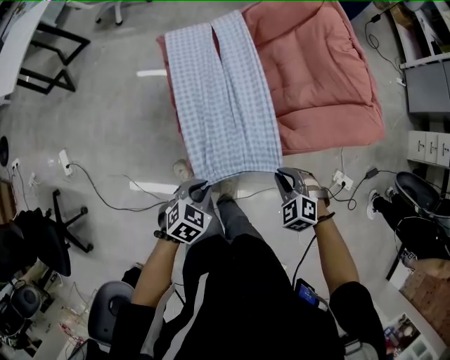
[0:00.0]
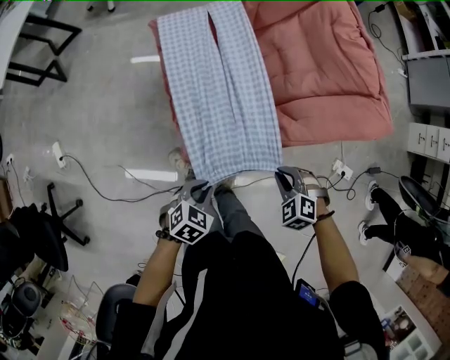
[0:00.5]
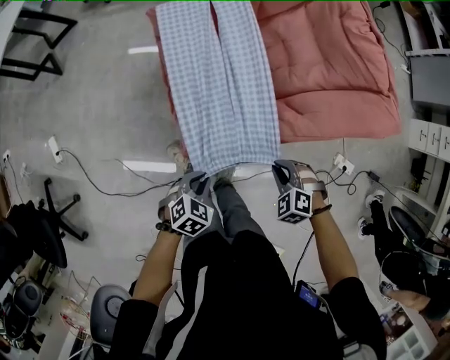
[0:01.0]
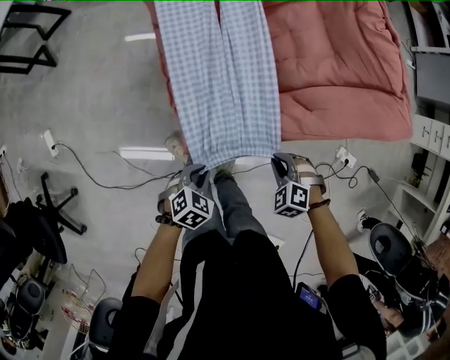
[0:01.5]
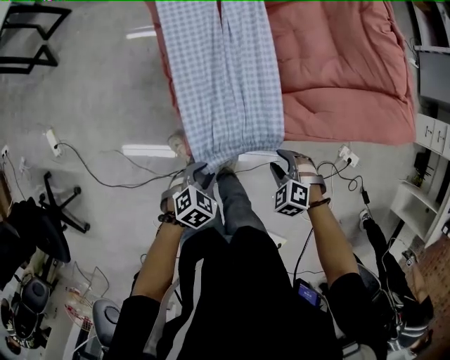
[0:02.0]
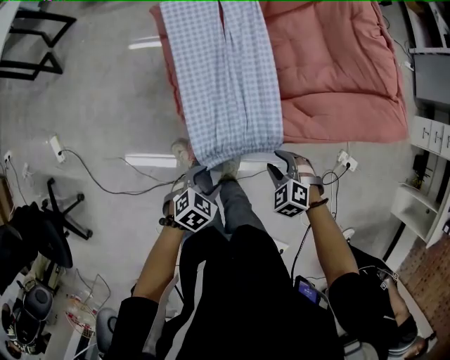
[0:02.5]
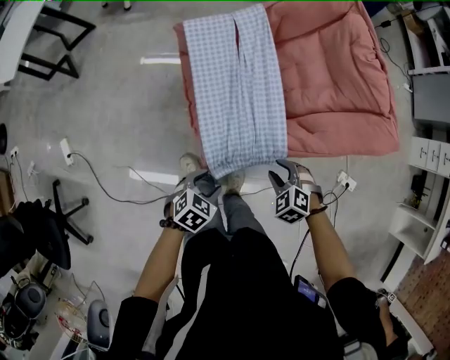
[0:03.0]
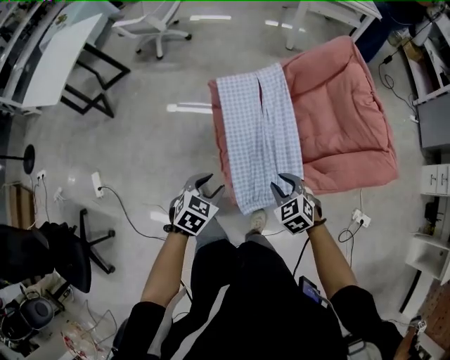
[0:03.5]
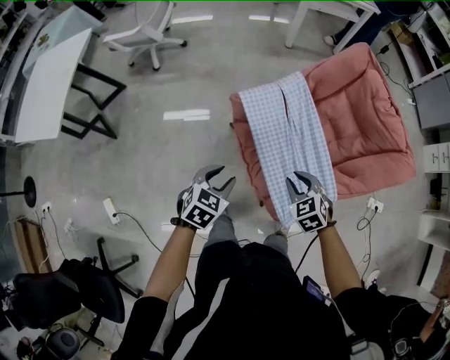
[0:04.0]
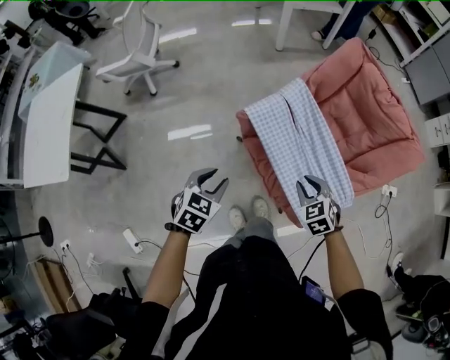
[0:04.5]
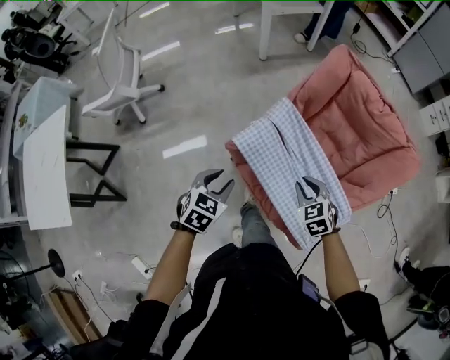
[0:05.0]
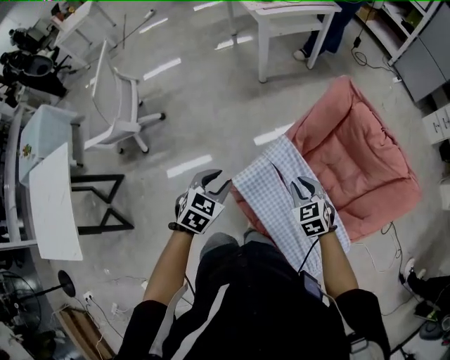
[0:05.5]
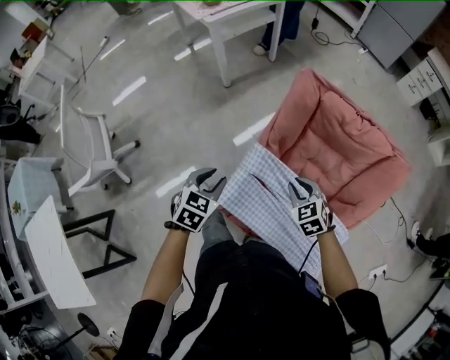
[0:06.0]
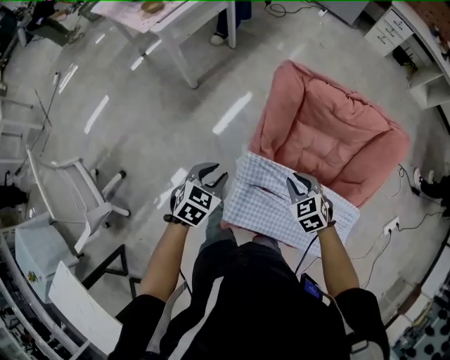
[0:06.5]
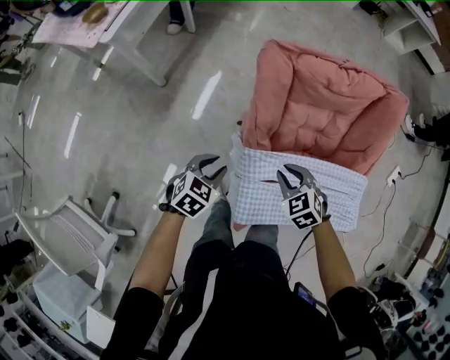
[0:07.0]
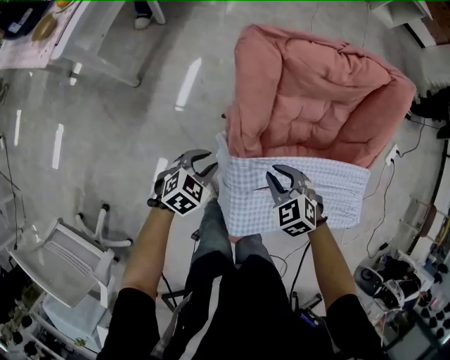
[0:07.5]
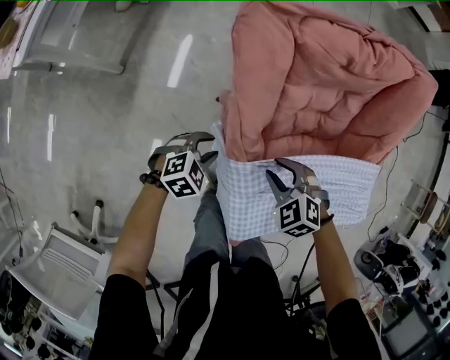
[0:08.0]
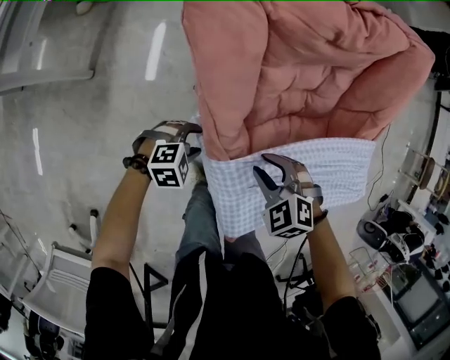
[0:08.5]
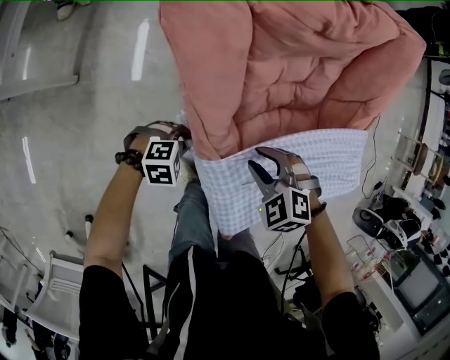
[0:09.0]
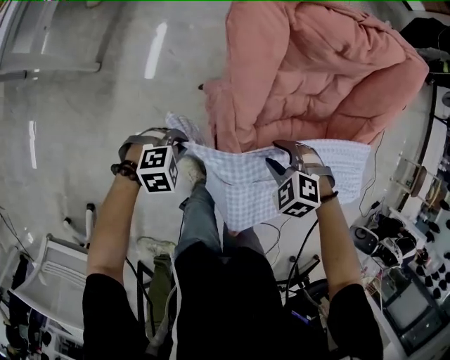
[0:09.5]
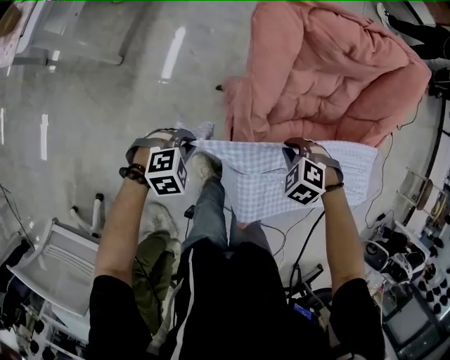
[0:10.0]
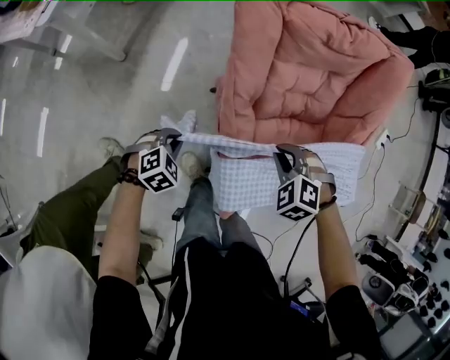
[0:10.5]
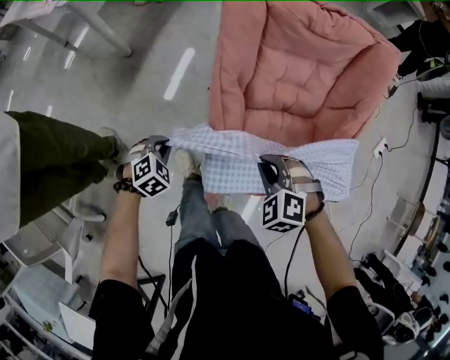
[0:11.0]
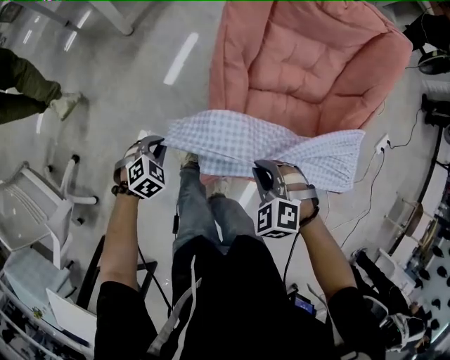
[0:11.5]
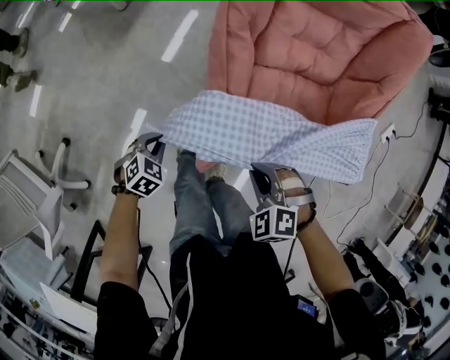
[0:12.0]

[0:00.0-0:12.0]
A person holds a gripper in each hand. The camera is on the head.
0:00.0 to 0:02.0: Both grippers move downward, some 15 cm. The right gripper opens up.
0:02.0 to 0:04.0: The left gripper goes roughly 40 cm to the left, forward and upward; the right gripper heads to the left, upward and forward, covering about 40 cm, and swivels roughly 40 degrees.
0:04.0 to 0:06.0: The right gripper ends up roughly 30 cm from where it was, and changes its angle by some 40 degrees. Meanwhile the left gripper ends up approximately 40 cm from where it was, and turns by approximately 30 degrees.
0:06.0 to 0:08.0: The right gripper travels downward by approximately 15 cm, and swivels roughly 30 degrees, while the left gripper moves downward, roughly 30 cm, and changes its angle by approximately 80 degrees.
0:08.0 to 0:10.0: The left gripper reaches approximately 5 cm downward, then returns, while the right gripper changes its angle by some 20 degrees, and closes up.
0:10.0 to 0:12.0: The left gripper shifts by some 25 cm, and changes its angle by some 40 degrees, while the right gripper moves roughly 10 cm upward and comes back, and swivels about 20 degrees.

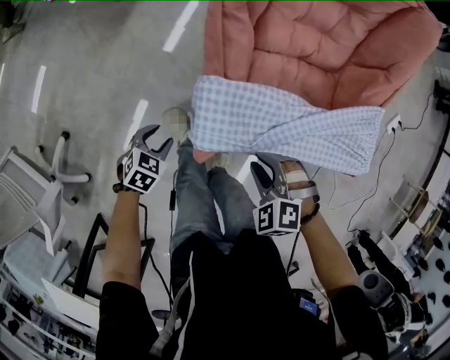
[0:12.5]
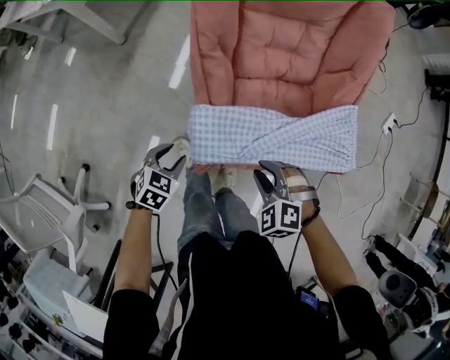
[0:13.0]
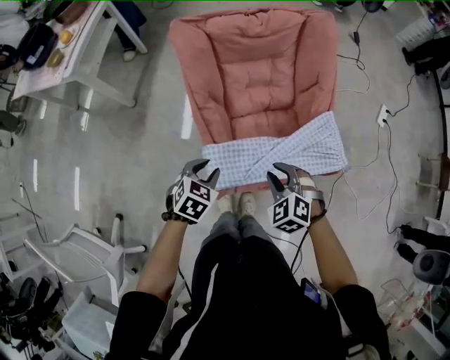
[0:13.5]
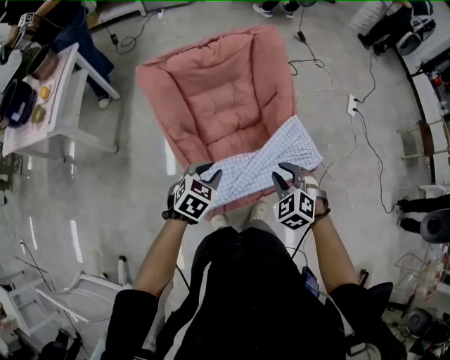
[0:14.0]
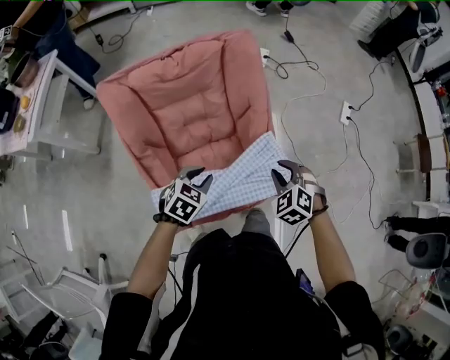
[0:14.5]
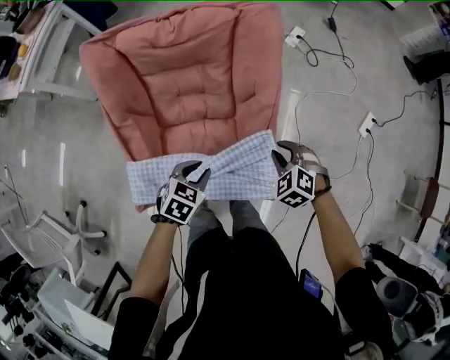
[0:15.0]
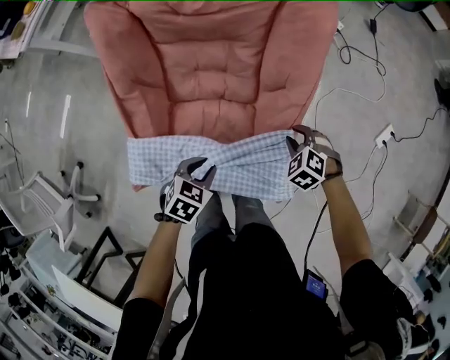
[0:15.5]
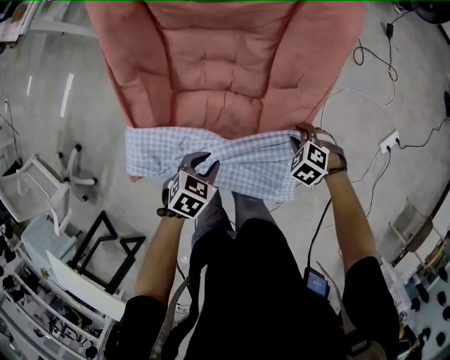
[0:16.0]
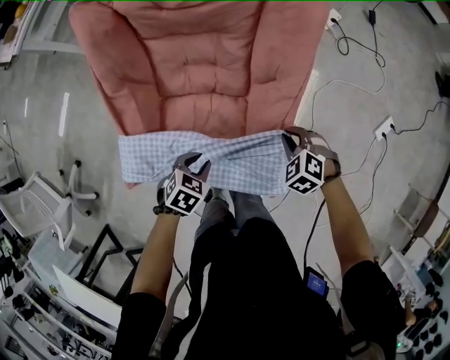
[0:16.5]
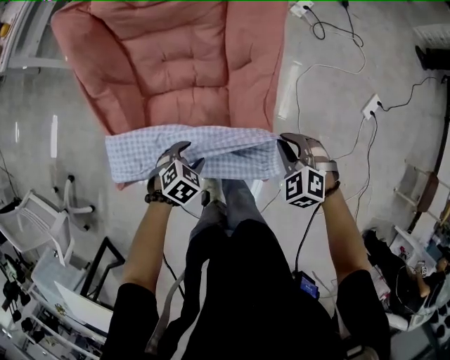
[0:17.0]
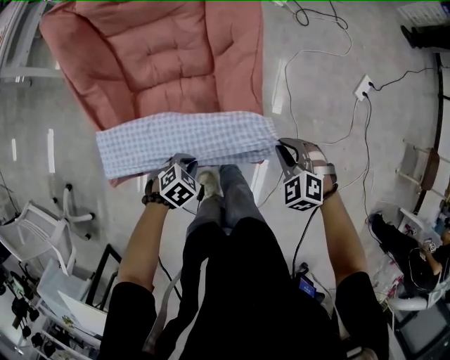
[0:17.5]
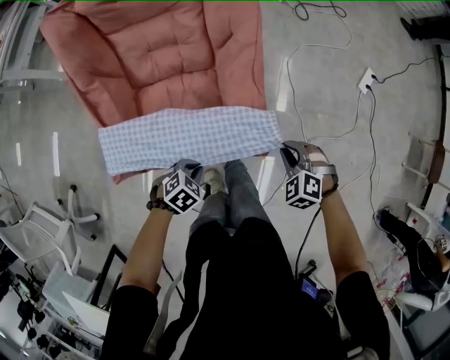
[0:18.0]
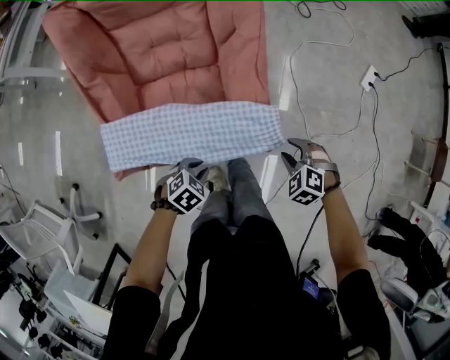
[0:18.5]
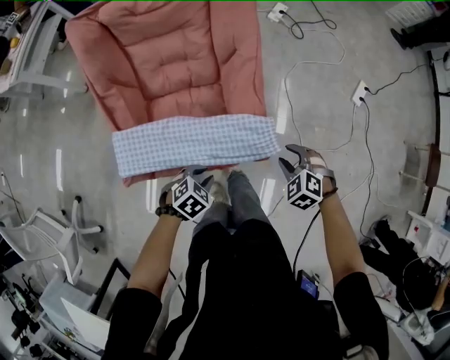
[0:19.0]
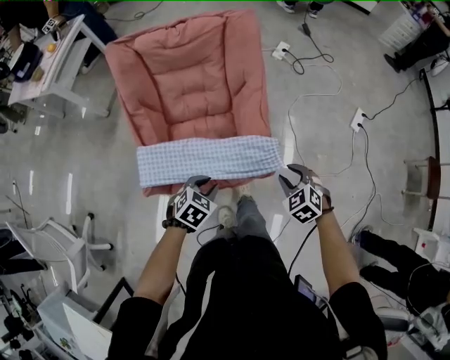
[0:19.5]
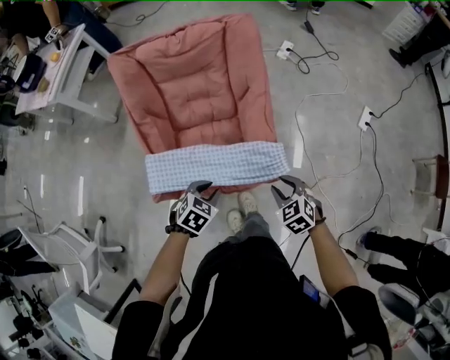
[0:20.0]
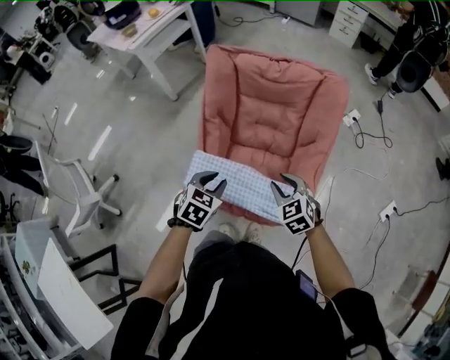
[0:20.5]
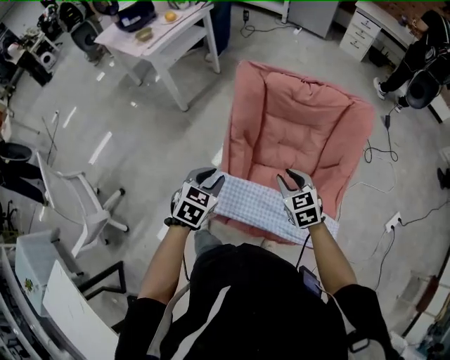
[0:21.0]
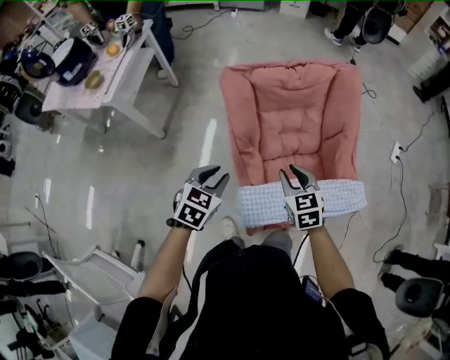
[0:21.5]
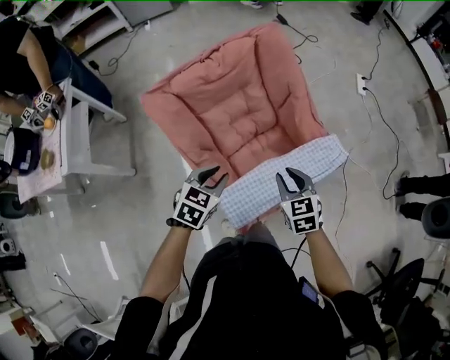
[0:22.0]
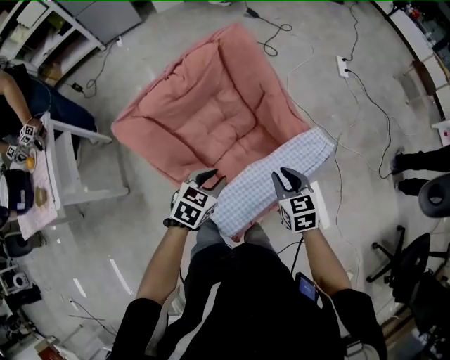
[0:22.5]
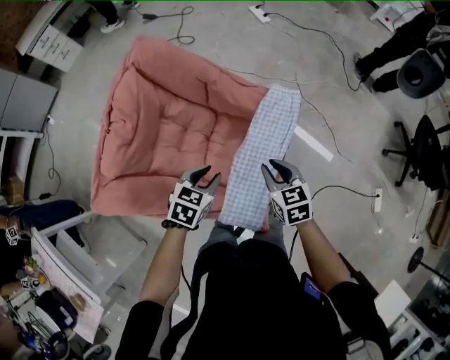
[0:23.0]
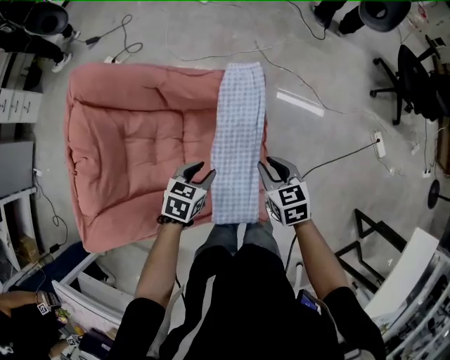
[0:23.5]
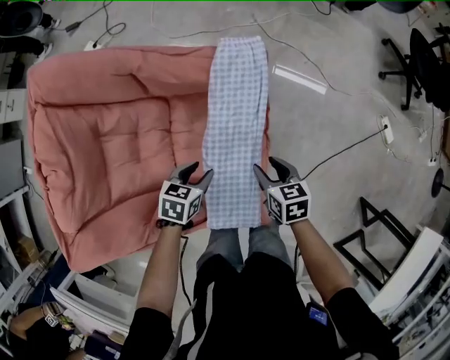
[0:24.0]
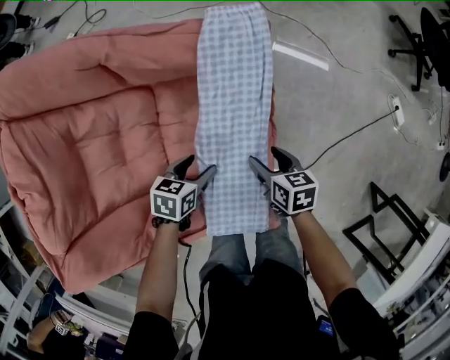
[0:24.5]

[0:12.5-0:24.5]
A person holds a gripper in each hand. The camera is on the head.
0:12.5 to 0:14.5: The right gripper changes place by approximately 40 cm, and changes its angle by approximately 40 degrees; the left gripper ends up about 50 cm from where it was, and turns by some 30 degrees.
0:14.5 to 0:16.5: Both grippers move downward, some 15 cm. The right gripper changes its angle by roughly 30 degrees. Meanwhile the left gripper swivels roughly 30 degrees.
0:16.5 to 0:18.5: The right gripper shifts by about 25 cm, and opens. Meanwhile the left gripper shifts by approximately 20 cm, and rotates roughly 30 degrees.
0:18.5 to 0:20.5: The right gripper ends up approximately 35 cm from where it was, and changes its angle by roughly 30 degrees. Meanwhile the left gripper travels upward by about 25 cm, and rotates some 50 degrees.
0:20.5 to 0:22.5: The right gripper swivels about 70 degrees; the left gripper changes its angle by about 60 degrees.
0:22.5 to 0:24.5: The grippers both shift downward by about 30 cm. The right gripper twists about 60 degrees clockwise, seen from behind, and opens its fingers. Meanwhile the left gripper turns by some 50 degrees, and opens its fingers.

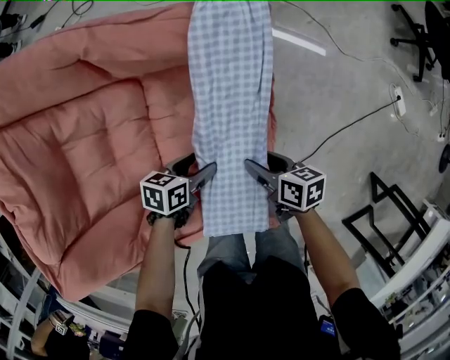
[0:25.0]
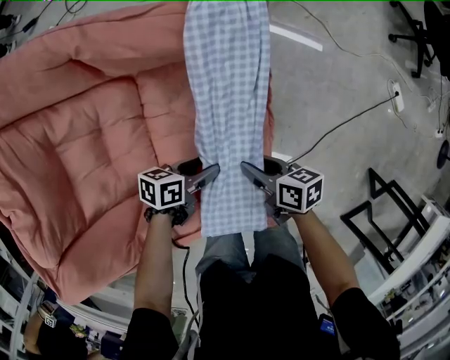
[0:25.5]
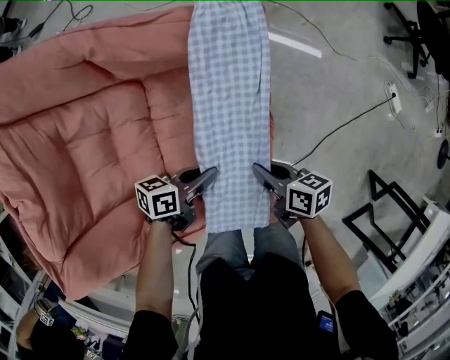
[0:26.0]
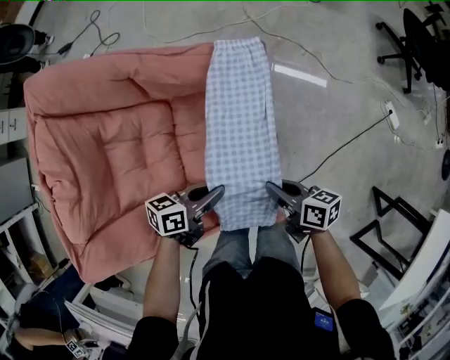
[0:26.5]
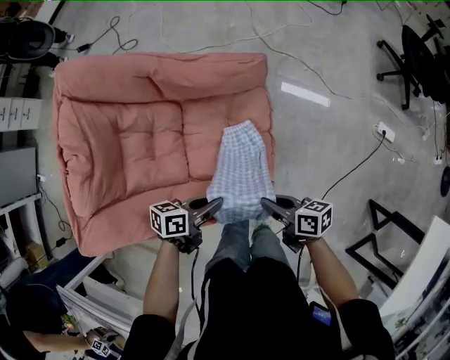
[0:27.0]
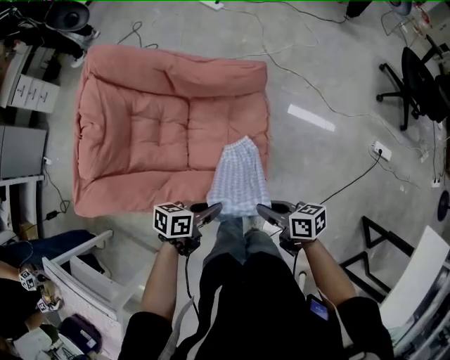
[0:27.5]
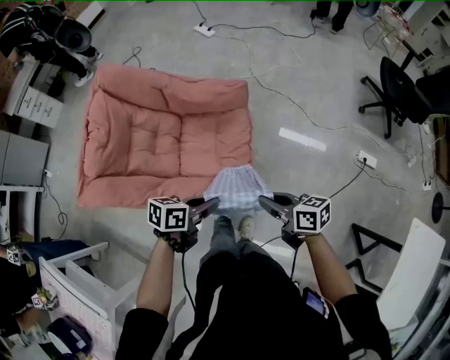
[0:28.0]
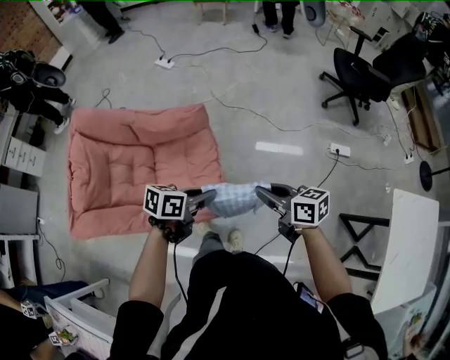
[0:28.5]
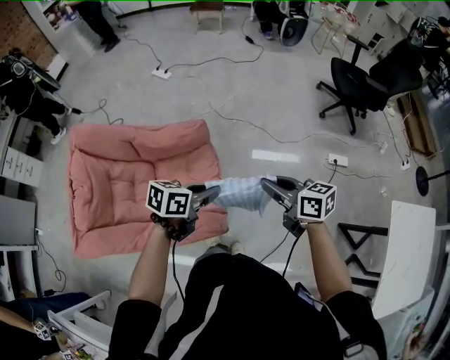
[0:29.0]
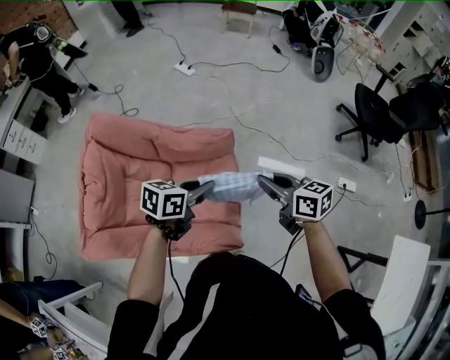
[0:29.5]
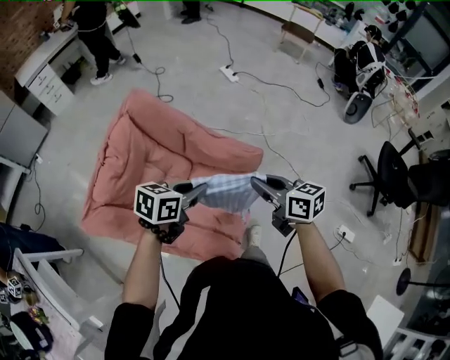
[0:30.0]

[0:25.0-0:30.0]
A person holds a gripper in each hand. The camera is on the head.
0:25.0 to 0:27.5: The two grippers go approximately 25 cm upward. The left gripper closes its fingers. Meanwhile the right gripper changes its angle by about 20 degrees, and closes.
0:27.5 to 0:30.0: The right gripper moves some 35 cm, and swivels about 30 degrees; the left gripper travels upward by some 25 cm, and rotates roughly 30 degrees.
